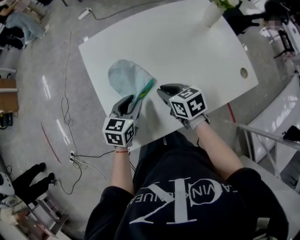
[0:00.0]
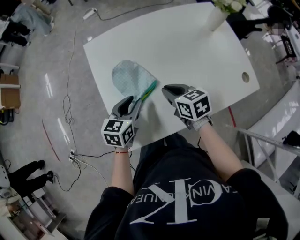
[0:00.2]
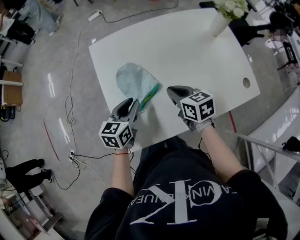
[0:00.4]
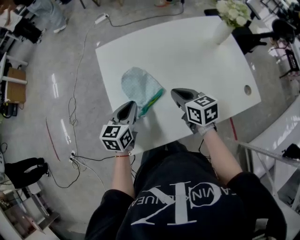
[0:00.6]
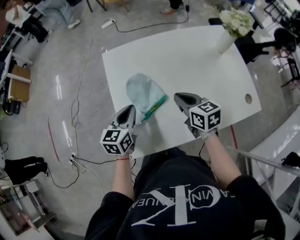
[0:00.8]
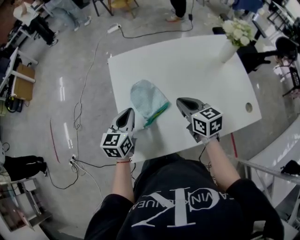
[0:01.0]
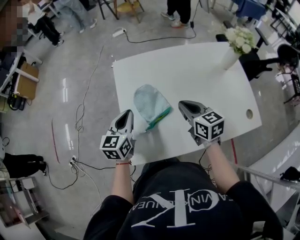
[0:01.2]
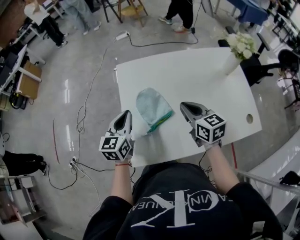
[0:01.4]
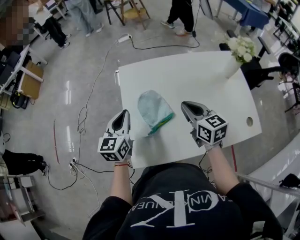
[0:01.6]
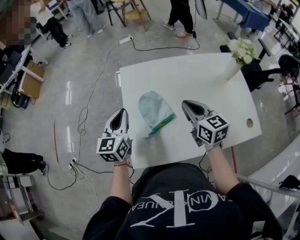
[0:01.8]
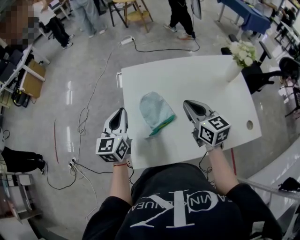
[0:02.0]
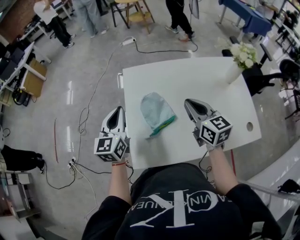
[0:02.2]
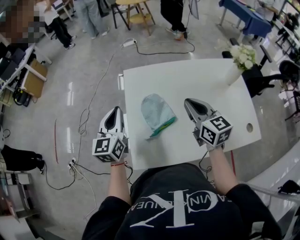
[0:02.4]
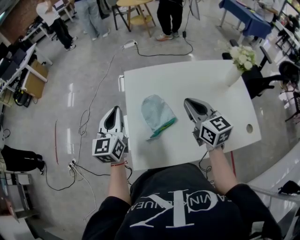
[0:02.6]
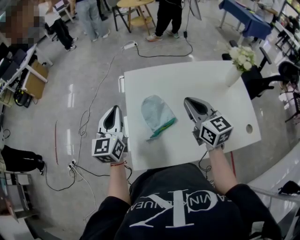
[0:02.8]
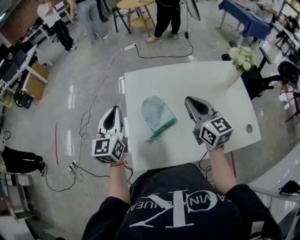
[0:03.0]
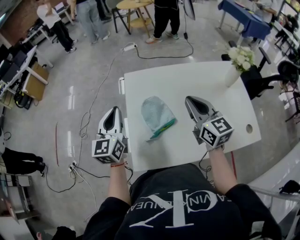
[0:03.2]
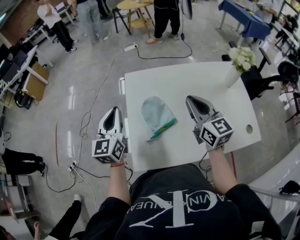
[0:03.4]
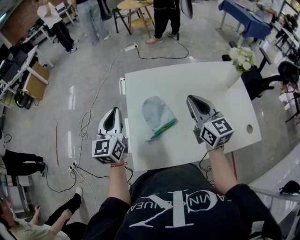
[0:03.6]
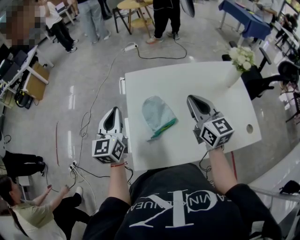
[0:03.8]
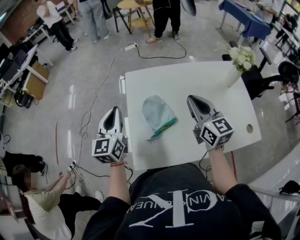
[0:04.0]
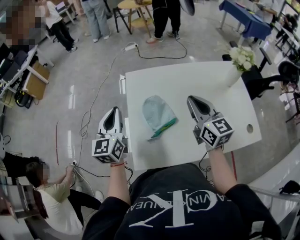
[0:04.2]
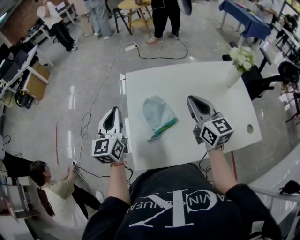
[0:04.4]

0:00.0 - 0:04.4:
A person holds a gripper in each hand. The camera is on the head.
0:00.0 - 0:01.4: The right gripper is displaced upward by some 10 cm, and rotates some 20 degrees; the left gripper travels upward and to the left by roughly 15 cm, turns by approximately 30 degrees, and closes.
0:01.4 - 0:03.0: Both grippers travel together upward, approximately 10 cm.
0:03.0 - 0:04.4: Both grippers stay put.

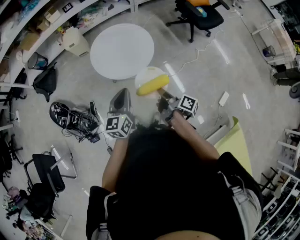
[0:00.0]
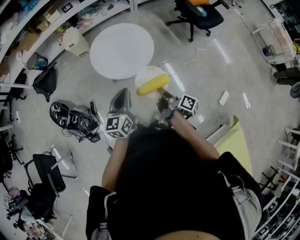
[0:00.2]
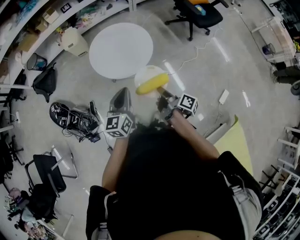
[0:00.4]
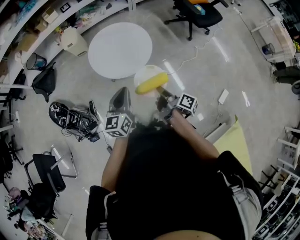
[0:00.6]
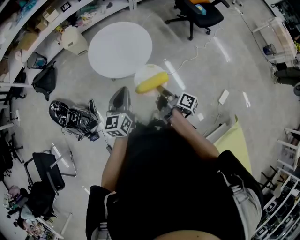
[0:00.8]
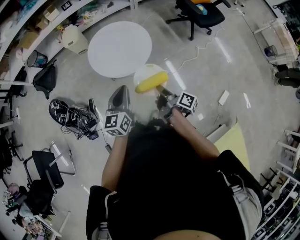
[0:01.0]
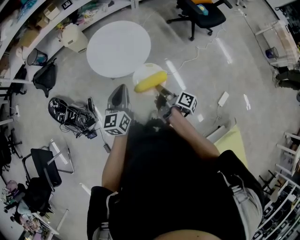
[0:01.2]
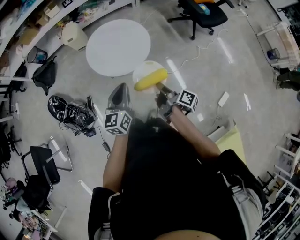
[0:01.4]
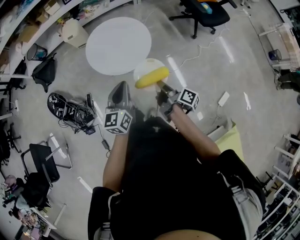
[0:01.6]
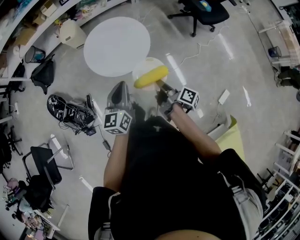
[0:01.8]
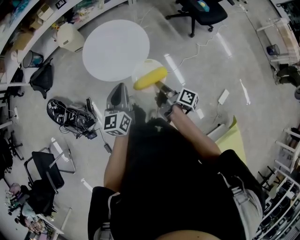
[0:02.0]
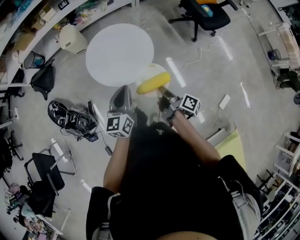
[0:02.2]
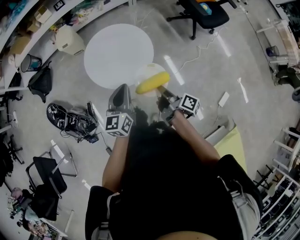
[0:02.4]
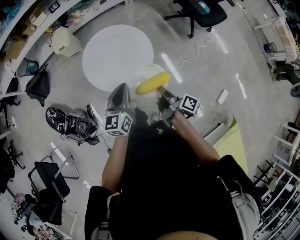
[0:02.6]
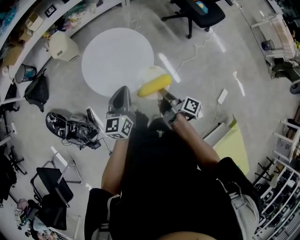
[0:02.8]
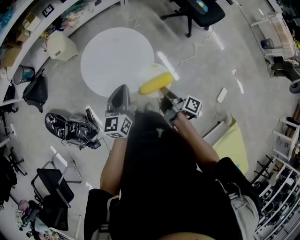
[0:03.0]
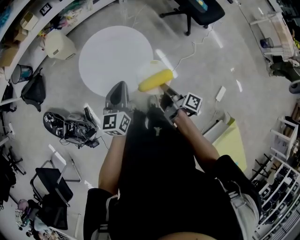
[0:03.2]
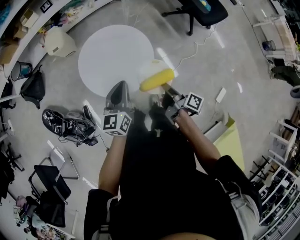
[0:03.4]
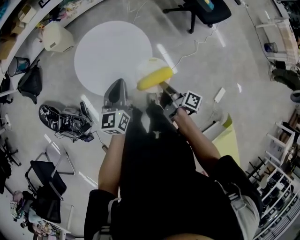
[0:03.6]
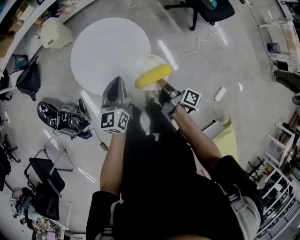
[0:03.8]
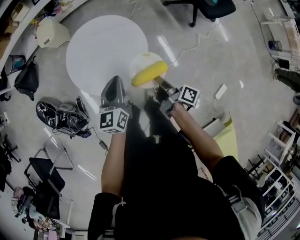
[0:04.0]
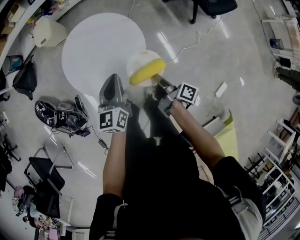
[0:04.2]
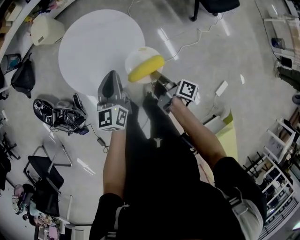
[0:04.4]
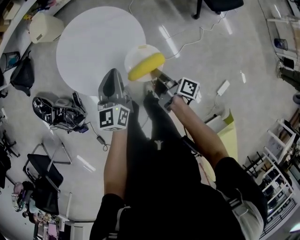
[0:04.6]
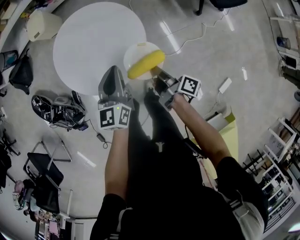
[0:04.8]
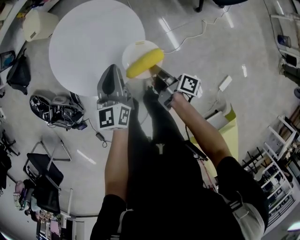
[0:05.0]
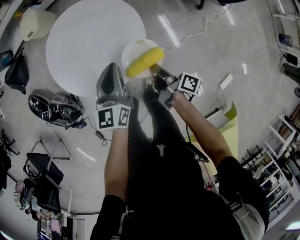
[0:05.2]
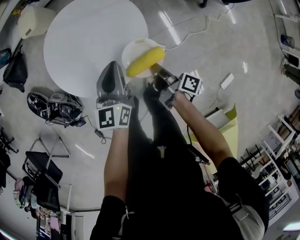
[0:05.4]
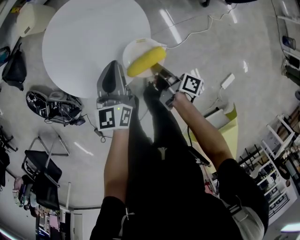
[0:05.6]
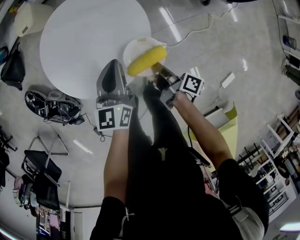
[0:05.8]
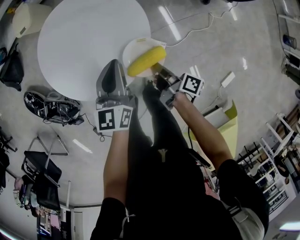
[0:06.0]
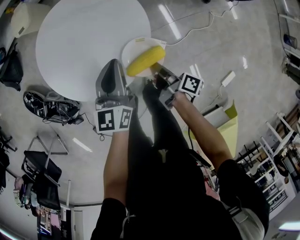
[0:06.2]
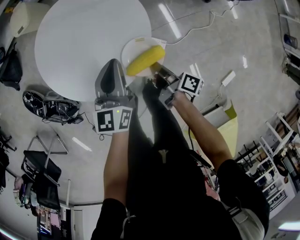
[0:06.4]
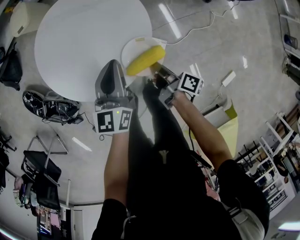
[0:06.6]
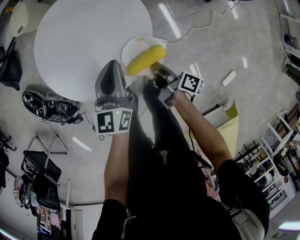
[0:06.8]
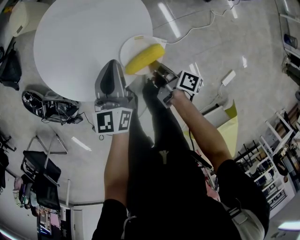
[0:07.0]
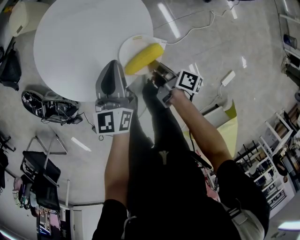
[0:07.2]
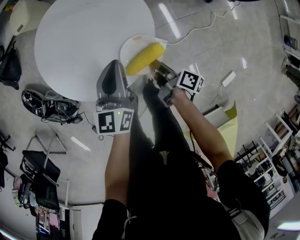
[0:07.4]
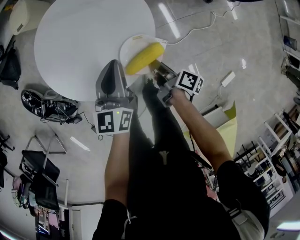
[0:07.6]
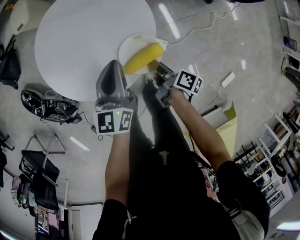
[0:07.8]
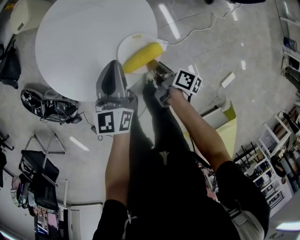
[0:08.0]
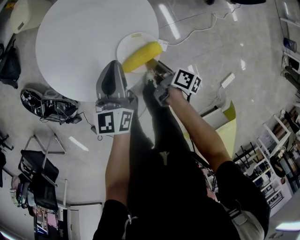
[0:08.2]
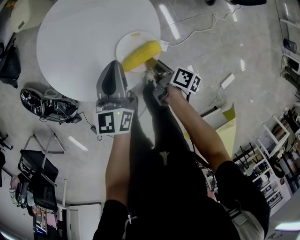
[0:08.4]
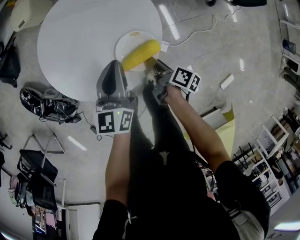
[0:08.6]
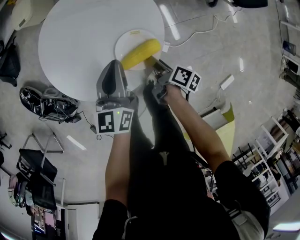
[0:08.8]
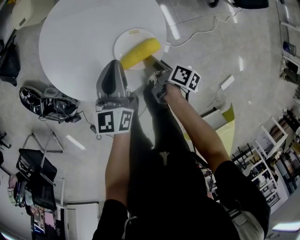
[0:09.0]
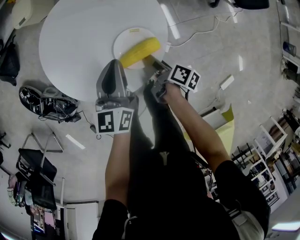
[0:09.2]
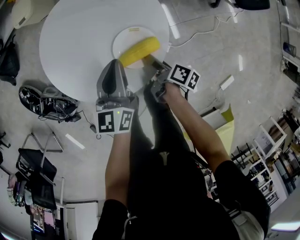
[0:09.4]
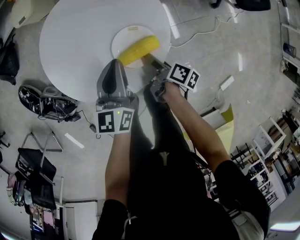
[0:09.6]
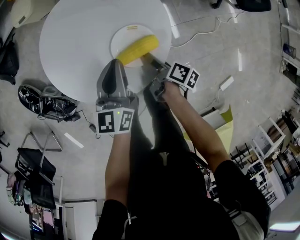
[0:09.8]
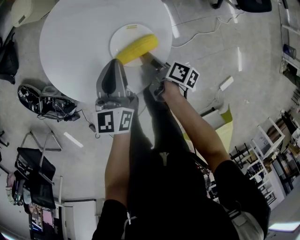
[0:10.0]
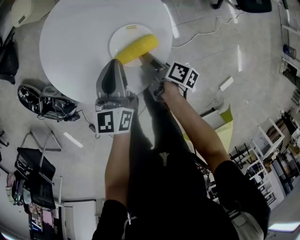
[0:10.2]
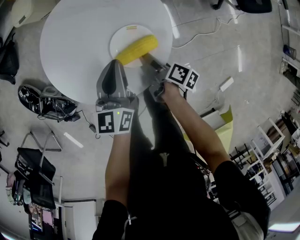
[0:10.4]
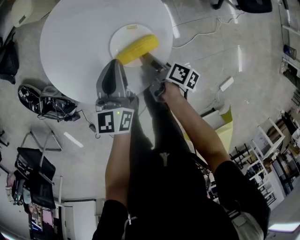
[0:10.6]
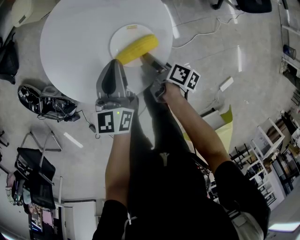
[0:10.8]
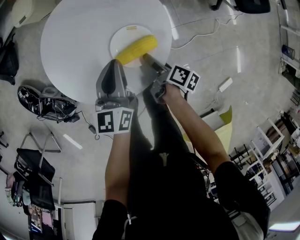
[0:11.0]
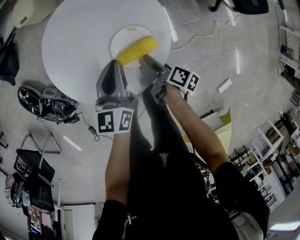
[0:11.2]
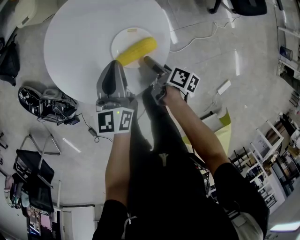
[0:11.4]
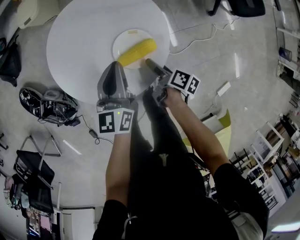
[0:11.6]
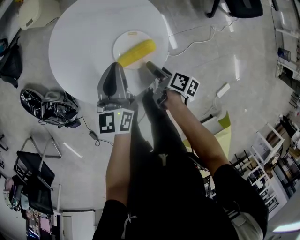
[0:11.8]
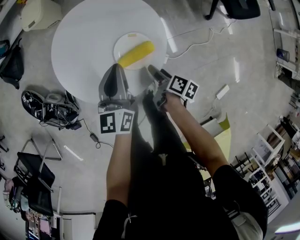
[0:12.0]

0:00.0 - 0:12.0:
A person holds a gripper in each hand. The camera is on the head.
0:00.0 - 0:01.6: The left gripper shifts by some 5 cm.
0:01.6 - 0:03.0: The left gripper shifts by some 15 cm.
0:03.0 - 0:04.4: The left gripper ends up about 15 cm from where it was.
0:04.4 - 0:06.0: The left gripper goes about 10 cm downward.
0:10.4 - 0:12.0: The left gripper moves upward, roughly 5 cm.

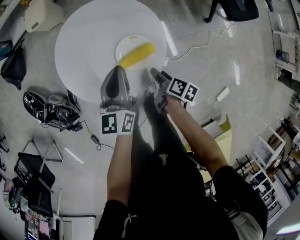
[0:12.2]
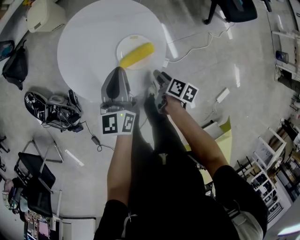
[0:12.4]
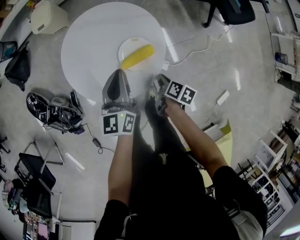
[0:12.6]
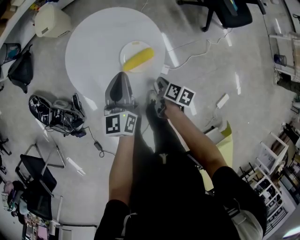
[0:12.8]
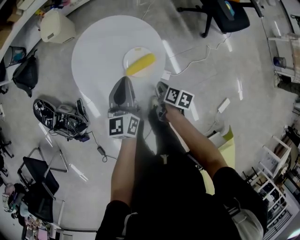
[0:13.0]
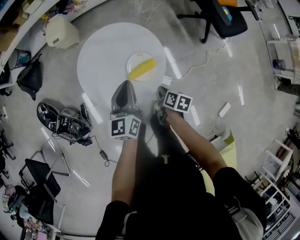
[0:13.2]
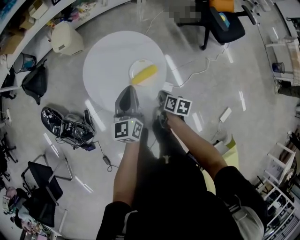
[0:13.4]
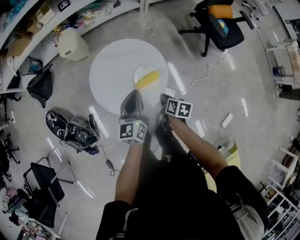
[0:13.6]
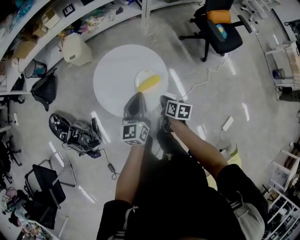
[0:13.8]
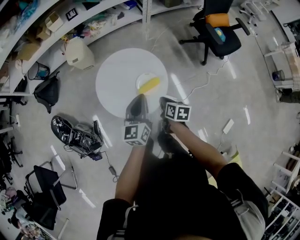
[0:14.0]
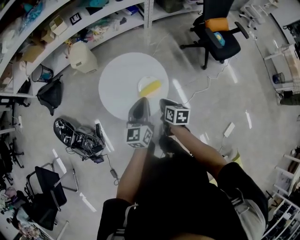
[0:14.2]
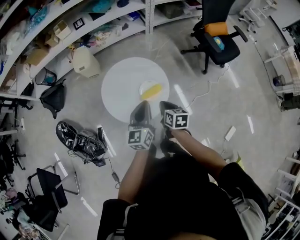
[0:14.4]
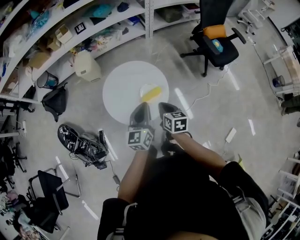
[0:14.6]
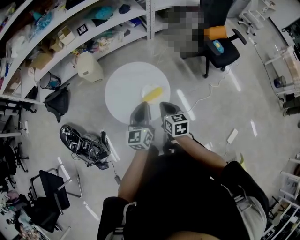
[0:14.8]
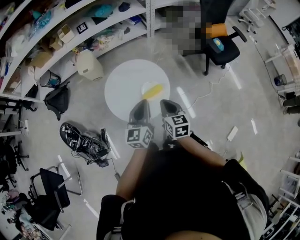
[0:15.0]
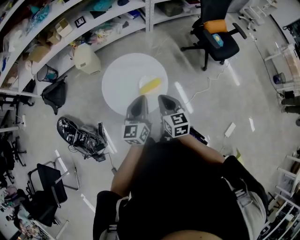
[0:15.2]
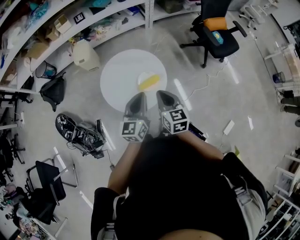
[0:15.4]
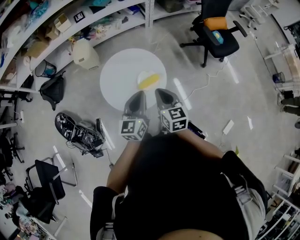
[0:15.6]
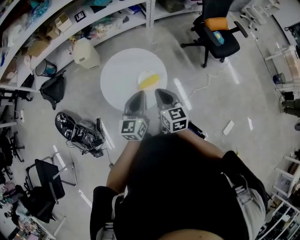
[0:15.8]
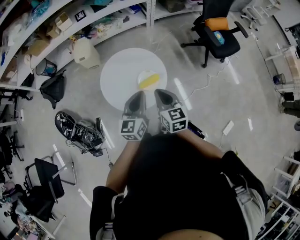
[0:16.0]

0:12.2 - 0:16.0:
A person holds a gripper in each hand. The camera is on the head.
0:12.2 - 0:13.4: The left gripper shifts some 10 cm upward.
0:13.4 - 0:14.8: The left gripper goes about 10 cm upward.

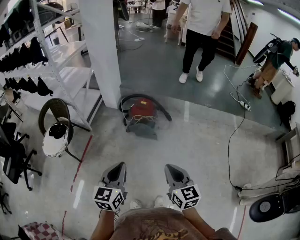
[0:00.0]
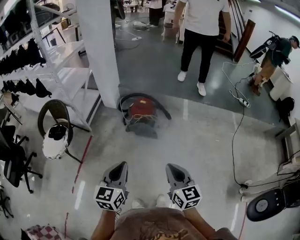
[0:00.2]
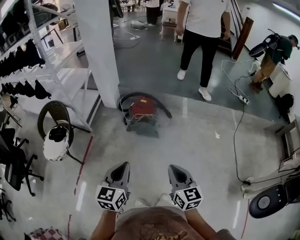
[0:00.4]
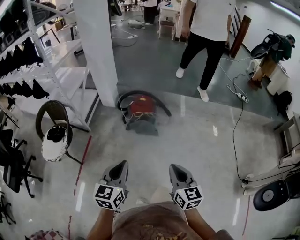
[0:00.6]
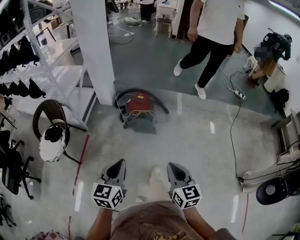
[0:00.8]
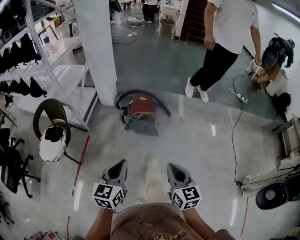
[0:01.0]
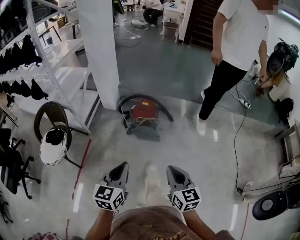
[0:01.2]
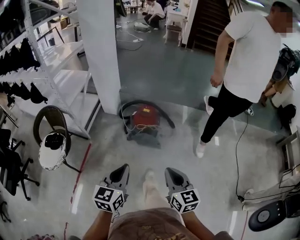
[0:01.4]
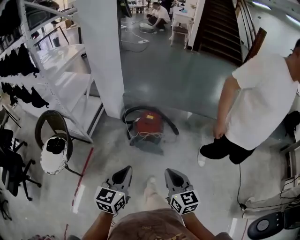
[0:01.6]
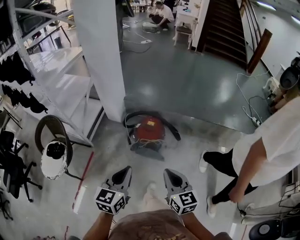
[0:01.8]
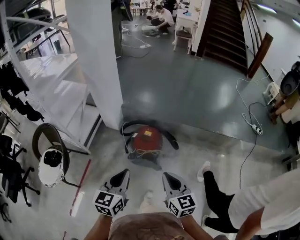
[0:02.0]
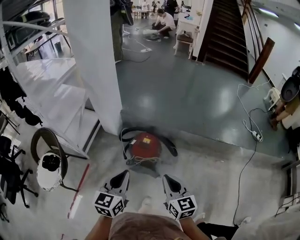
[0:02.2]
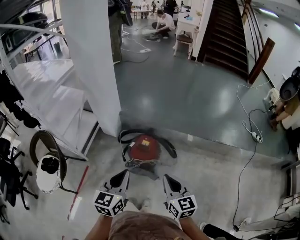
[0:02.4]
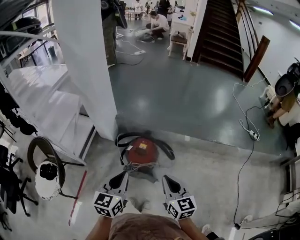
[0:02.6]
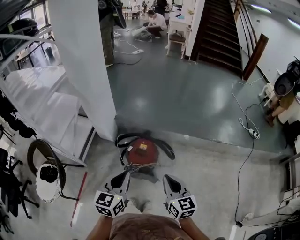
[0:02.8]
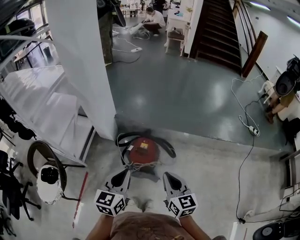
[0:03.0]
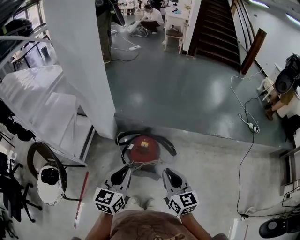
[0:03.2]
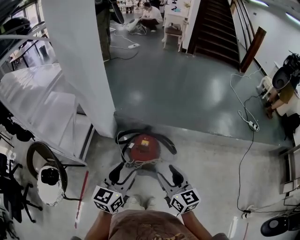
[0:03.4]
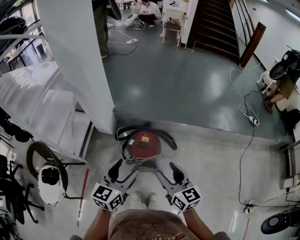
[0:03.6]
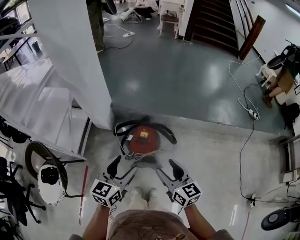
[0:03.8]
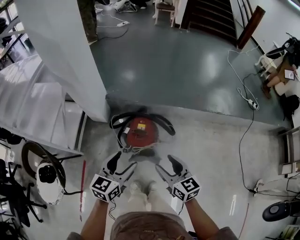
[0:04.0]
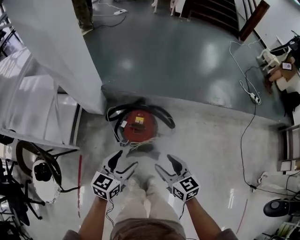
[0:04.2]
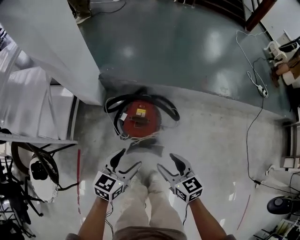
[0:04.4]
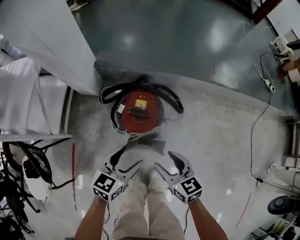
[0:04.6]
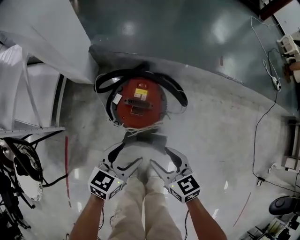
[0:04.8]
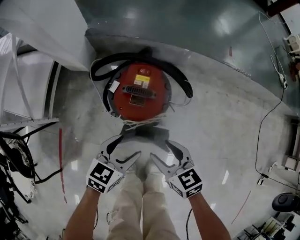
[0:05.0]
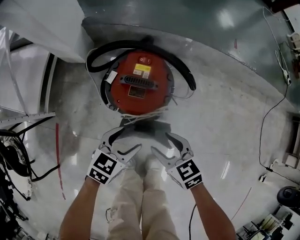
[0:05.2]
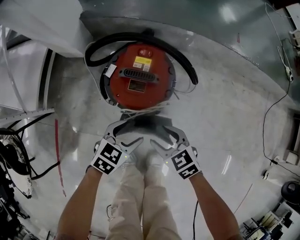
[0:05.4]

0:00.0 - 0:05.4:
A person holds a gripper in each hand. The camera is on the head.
0:00.0 - 0:01.4: The left gripper shifts some 10 cm forward. The right gripper travels forward and to the left by about 10 cm.
0:01.4 - 0:02.8: The two grippers go approximately 30 cm forward.
0:02.8 - 0:04.0: The grippers both shift downward by approximately 5 cm. The right gripper opens. Meanwhile the left gripper opens its fingers.
0:04.0 - 0:05.4: Both grippers move downward, approximately 40 cm. The left gripper rotates about 30 degrees; the right gripper swivels roughly 40 degrees.
